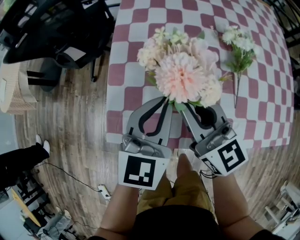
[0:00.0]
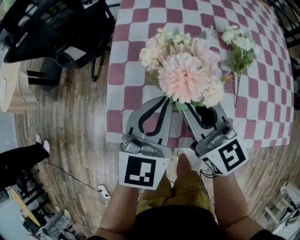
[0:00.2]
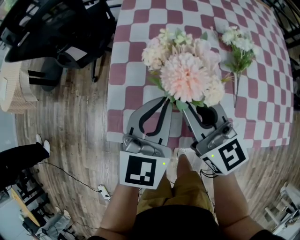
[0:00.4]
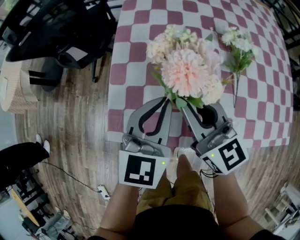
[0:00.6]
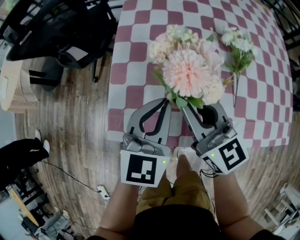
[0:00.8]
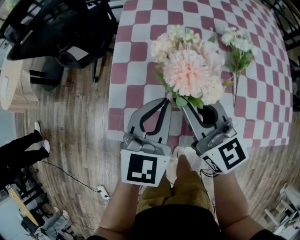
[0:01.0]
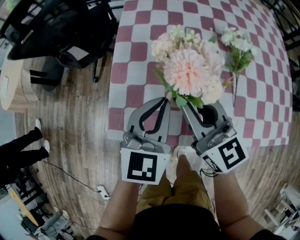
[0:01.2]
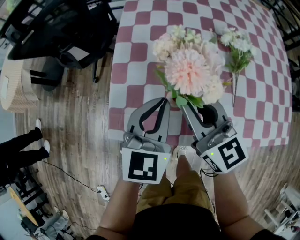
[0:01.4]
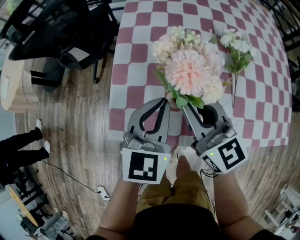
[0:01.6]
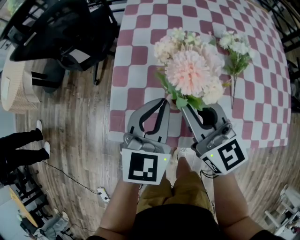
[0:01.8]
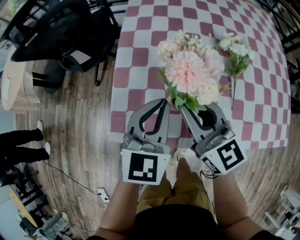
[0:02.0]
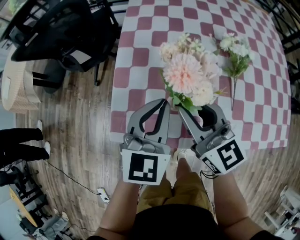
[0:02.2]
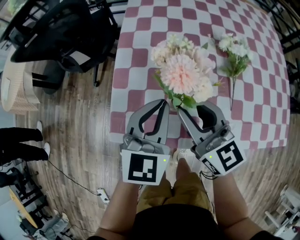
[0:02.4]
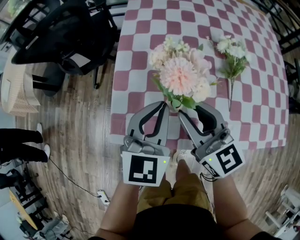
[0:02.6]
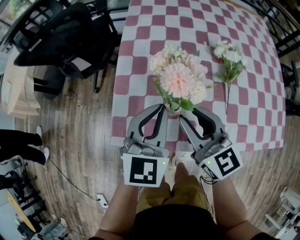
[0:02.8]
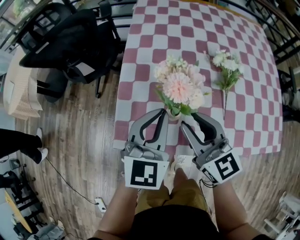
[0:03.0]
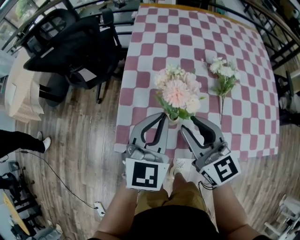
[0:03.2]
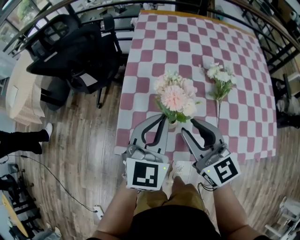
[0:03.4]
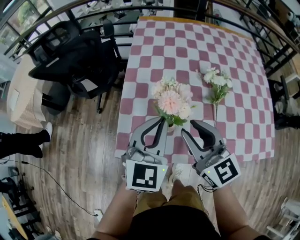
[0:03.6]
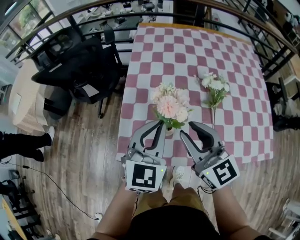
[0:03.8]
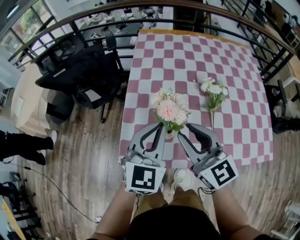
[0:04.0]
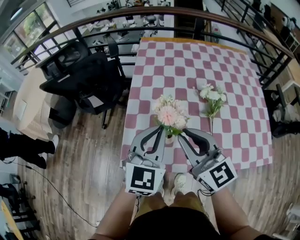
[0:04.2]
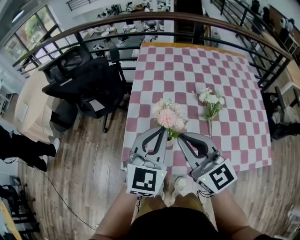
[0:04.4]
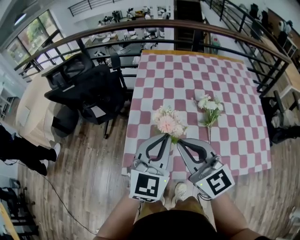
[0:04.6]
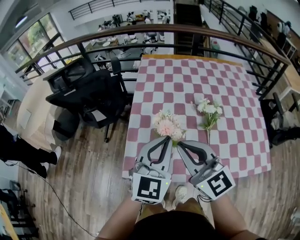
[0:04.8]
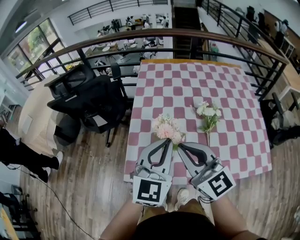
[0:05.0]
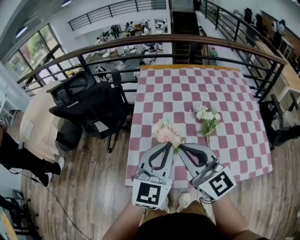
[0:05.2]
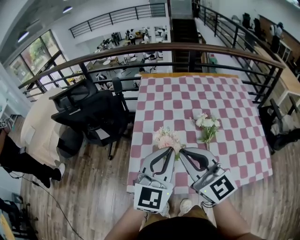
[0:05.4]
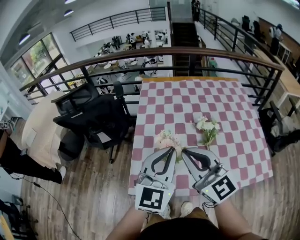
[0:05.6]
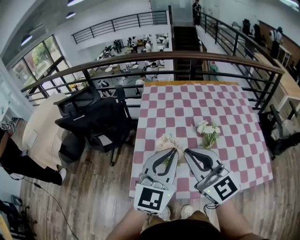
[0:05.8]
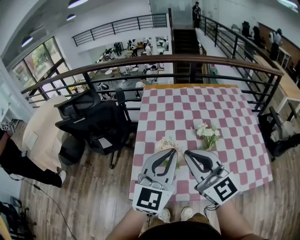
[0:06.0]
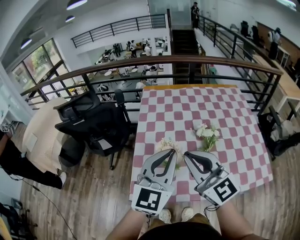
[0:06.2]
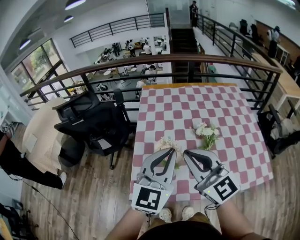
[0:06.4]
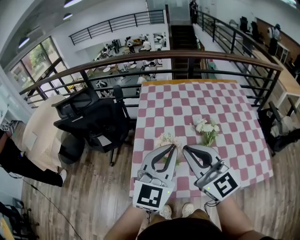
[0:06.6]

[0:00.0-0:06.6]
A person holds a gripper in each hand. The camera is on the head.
0:00.0 to 0:01.6: Both grippers stay put.
0:01.6 to 0:03.2: The left gripper goes about 5 cm upward; the right gripper changes place by about 5 cm.
0:03.2 to 0:05.0: Both grippers move upward, some 15 cm. The right gripper closes.
0:05.0 to 0:06.6: Both grippers travel together upward, roughly 5 cm.

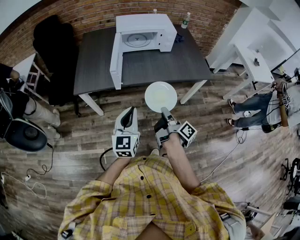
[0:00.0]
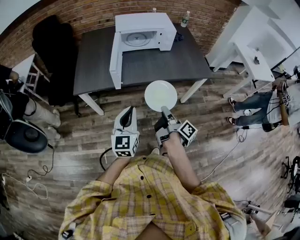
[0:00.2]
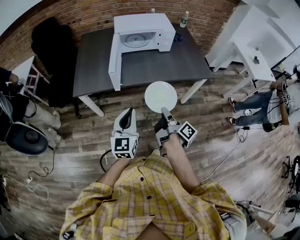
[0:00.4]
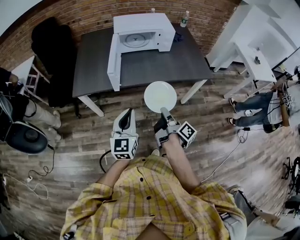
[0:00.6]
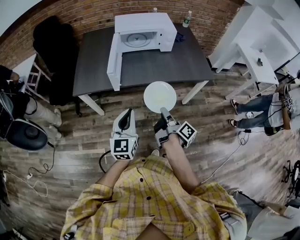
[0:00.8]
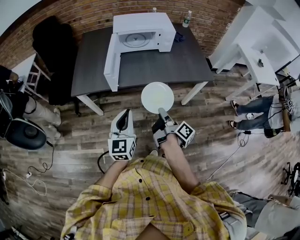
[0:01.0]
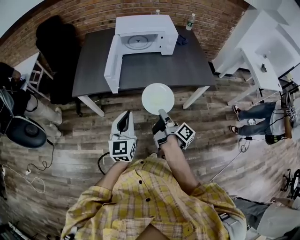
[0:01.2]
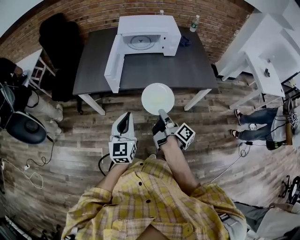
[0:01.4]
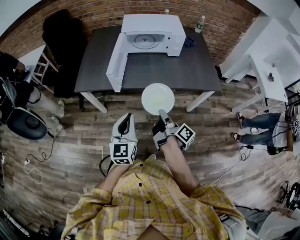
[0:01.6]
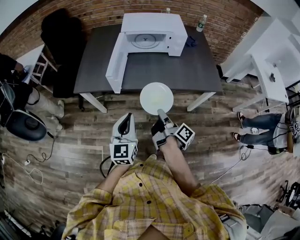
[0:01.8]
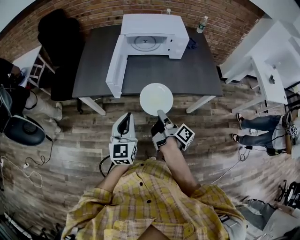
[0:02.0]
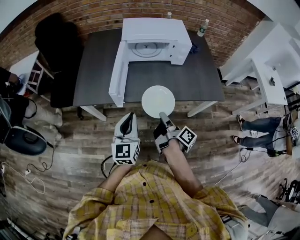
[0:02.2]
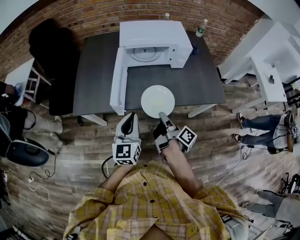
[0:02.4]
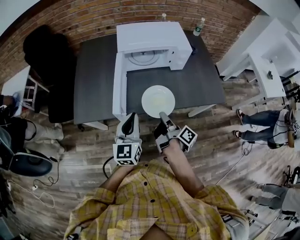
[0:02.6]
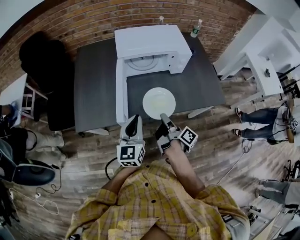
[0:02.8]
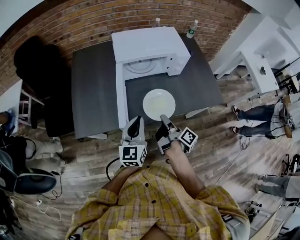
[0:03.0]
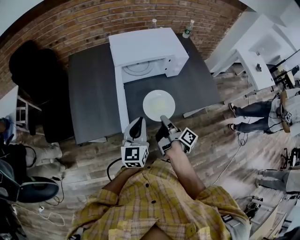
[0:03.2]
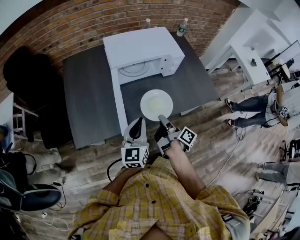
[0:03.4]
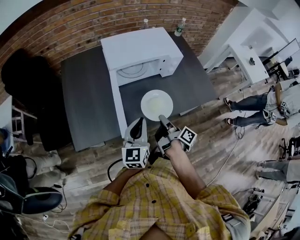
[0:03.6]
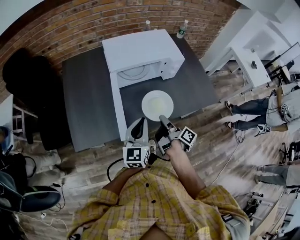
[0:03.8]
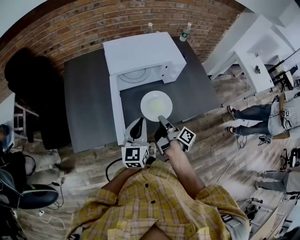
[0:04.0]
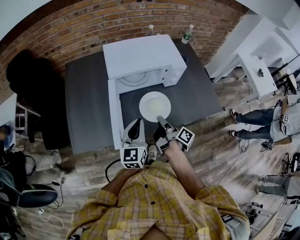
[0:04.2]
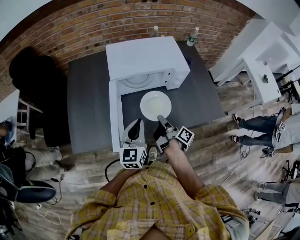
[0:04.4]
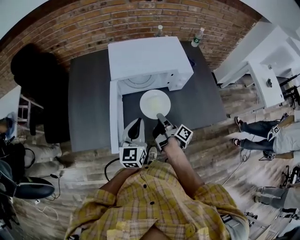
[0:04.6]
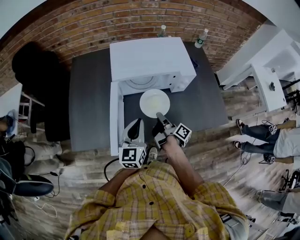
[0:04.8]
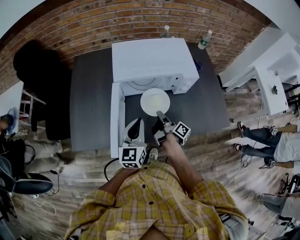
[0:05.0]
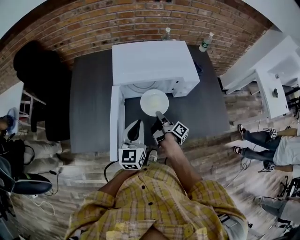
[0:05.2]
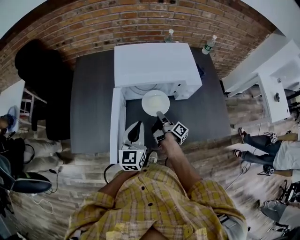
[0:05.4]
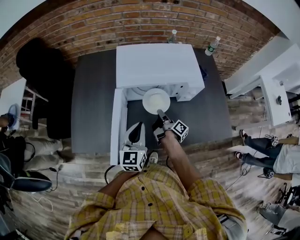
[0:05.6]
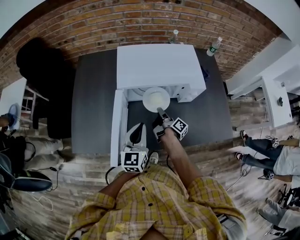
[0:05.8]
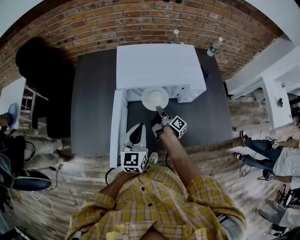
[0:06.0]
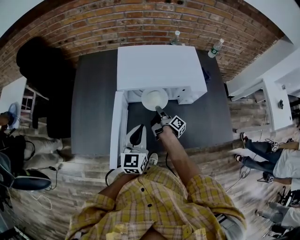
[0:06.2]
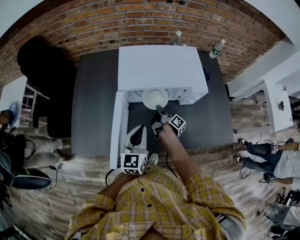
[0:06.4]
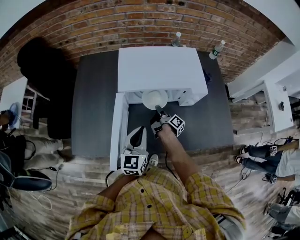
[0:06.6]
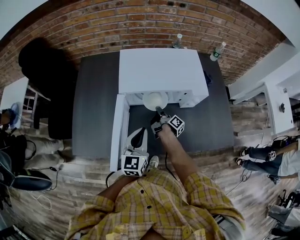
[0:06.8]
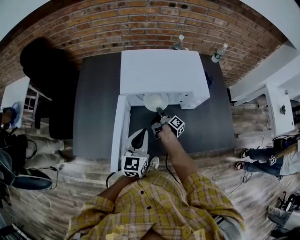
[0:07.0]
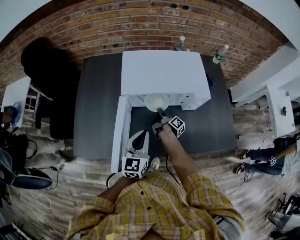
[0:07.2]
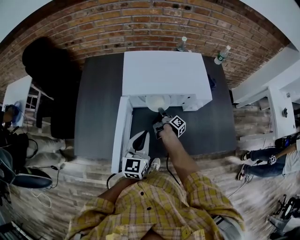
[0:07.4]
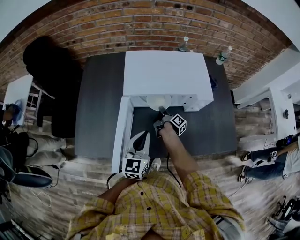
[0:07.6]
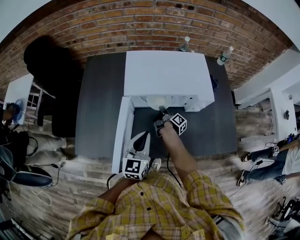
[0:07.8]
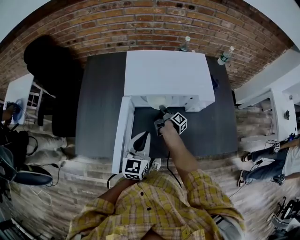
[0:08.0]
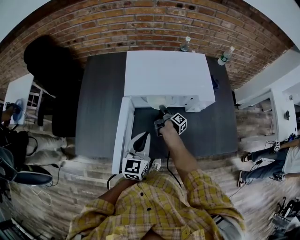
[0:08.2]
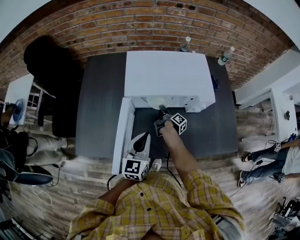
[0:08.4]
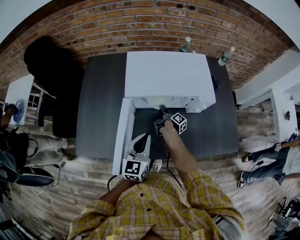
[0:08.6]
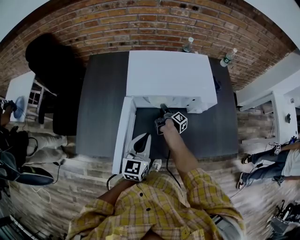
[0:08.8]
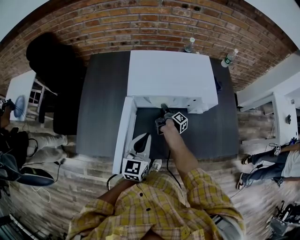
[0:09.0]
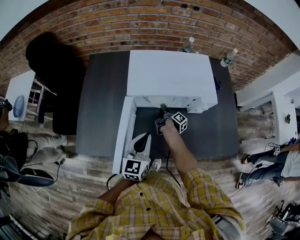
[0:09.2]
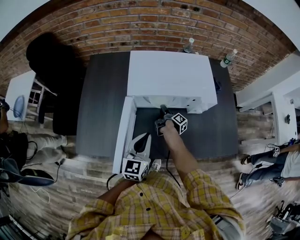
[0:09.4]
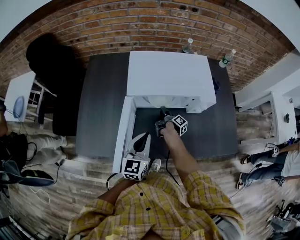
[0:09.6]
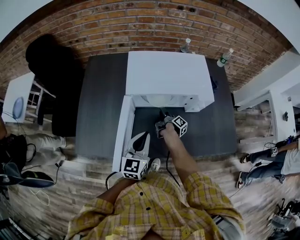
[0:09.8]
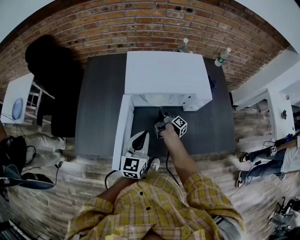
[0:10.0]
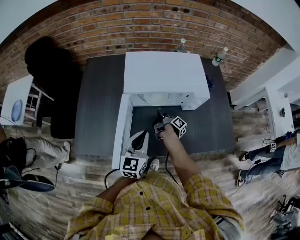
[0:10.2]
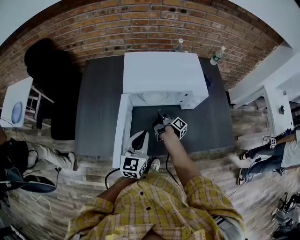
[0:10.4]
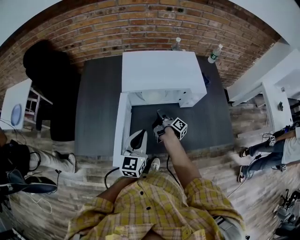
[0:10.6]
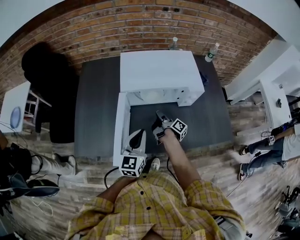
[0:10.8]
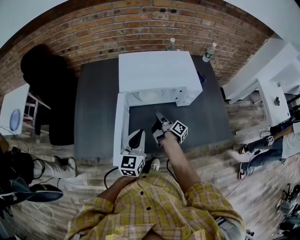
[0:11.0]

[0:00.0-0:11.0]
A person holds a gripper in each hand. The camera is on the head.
0:00.0 to 0:01.6: The left gripper changes place by some 5 cm.
0:01.6 to 0:03.2: The left gripper changes place by roughly 30 cm, and turns by some 20 degrees.
0:03.2 to 0:04.8: The left gripper moves approximately 10 cm.
0:04.8 to 0:06.2: The left gripper moves some 5 cm.

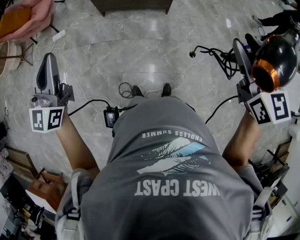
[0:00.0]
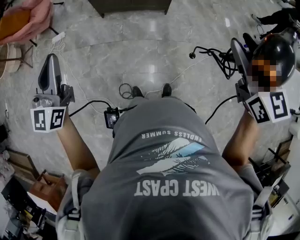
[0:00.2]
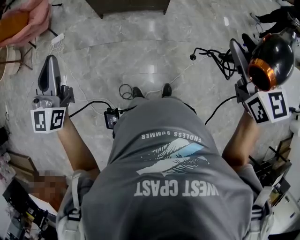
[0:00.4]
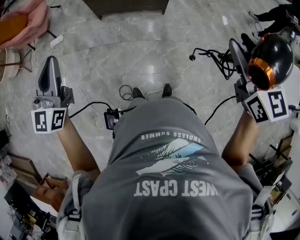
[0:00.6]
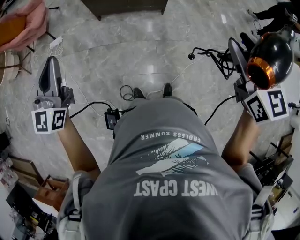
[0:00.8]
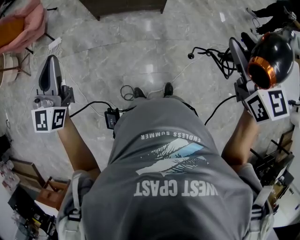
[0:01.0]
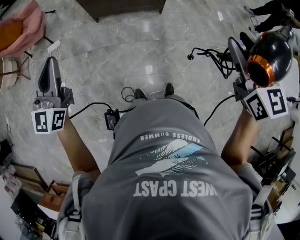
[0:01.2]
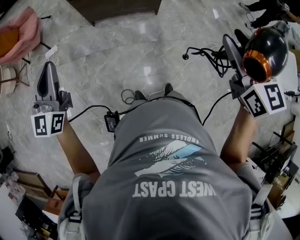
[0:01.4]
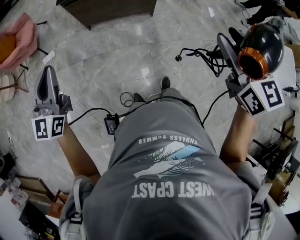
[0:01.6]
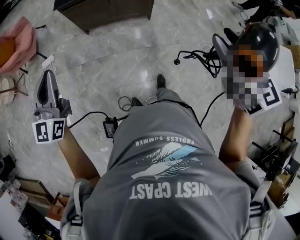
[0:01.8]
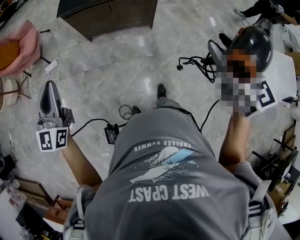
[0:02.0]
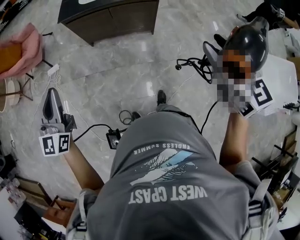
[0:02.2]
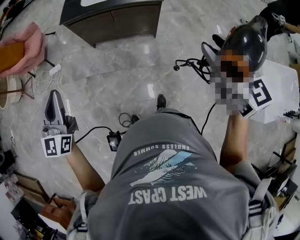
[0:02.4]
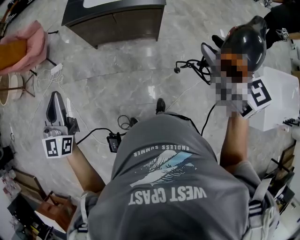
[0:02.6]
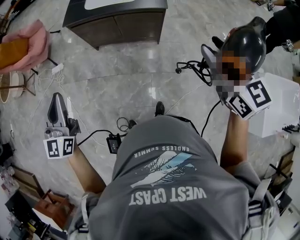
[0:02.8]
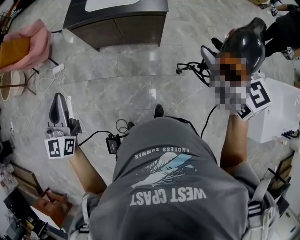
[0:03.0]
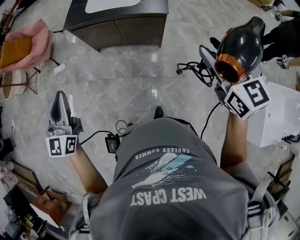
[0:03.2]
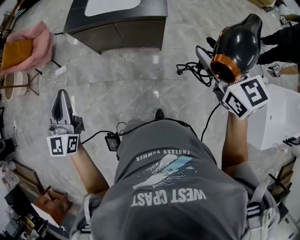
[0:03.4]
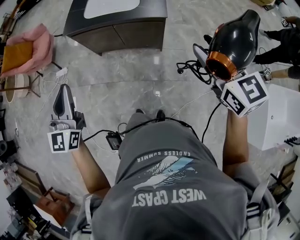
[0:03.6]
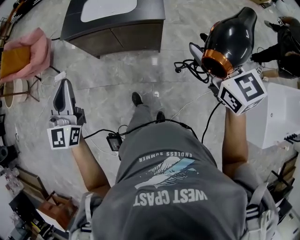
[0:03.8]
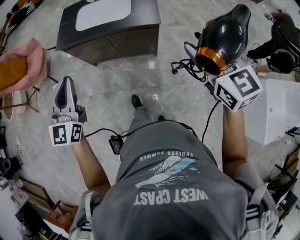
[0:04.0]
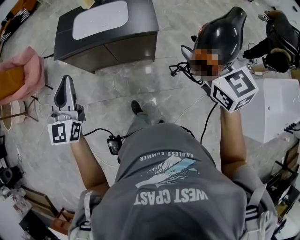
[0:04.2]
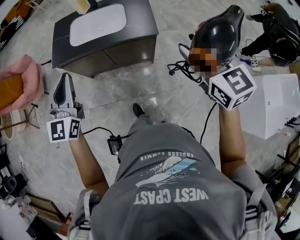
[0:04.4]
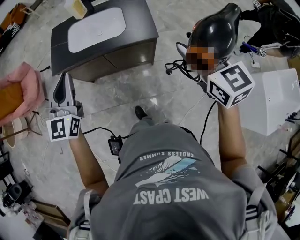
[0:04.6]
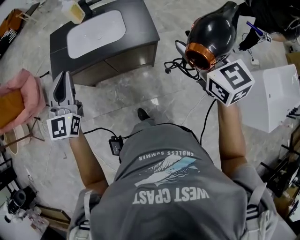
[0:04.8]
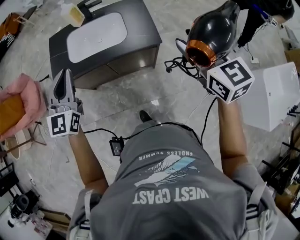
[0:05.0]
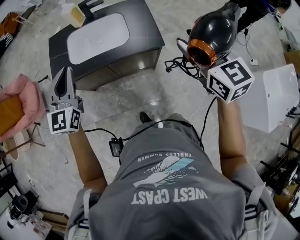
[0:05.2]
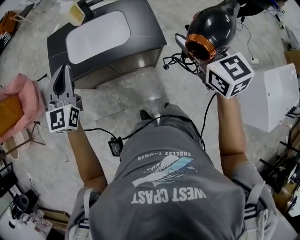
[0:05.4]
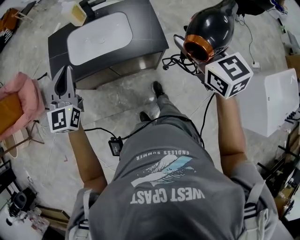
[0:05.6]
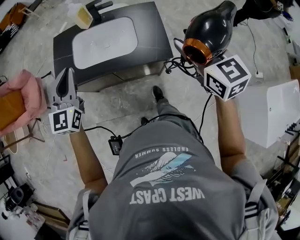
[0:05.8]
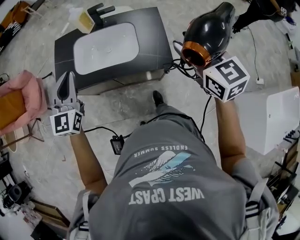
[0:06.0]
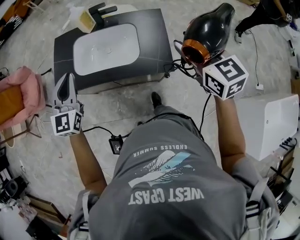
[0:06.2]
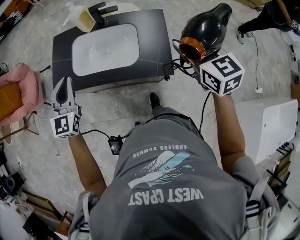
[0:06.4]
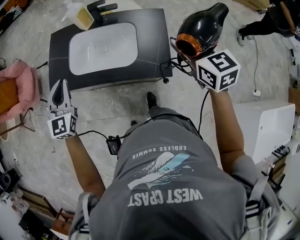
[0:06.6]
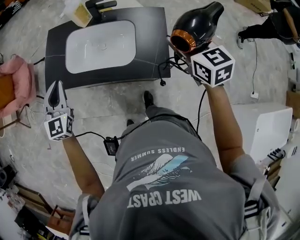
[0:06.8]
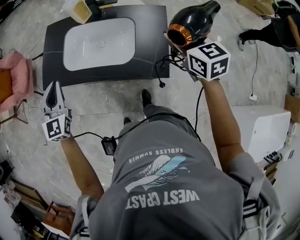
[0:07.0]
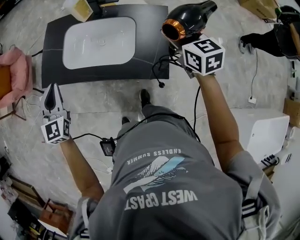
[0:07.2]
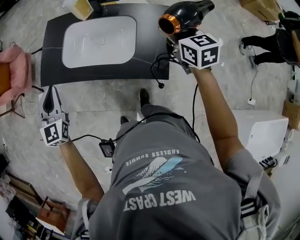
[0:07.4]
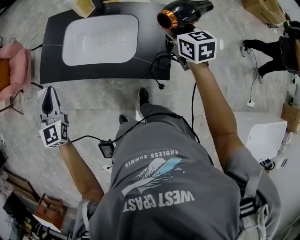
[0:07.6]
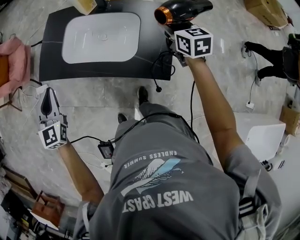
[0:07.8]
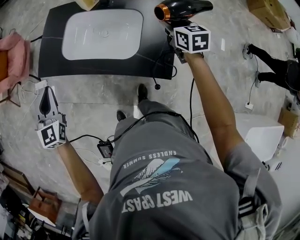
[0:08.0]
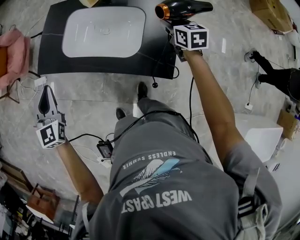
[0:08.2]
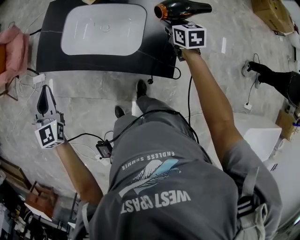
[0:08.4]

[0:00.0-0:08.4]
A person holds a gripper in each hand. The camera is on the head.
0:00.0 to 0:01.4: The left gripper shifts some 5 cm forward.
0:01.4 to 0:02.8: The left gripper goes roughly 15 cm to the right and forward; the right gripper goes some 20 cm forward and to the right.
0:02.8 to 0:04.2: The left gripper travels forward and to the right by some 25 cm. The right gripper travels forward by about 15 cm.
0:04.2 to 0:05.6: The two grippers go roughly 25 cm forward.
0:05.6 to 0:07.0: The left gripper heads downward and forward, covering roughly 10 cm, and turns by some 20 degrees. The right gripper goes approximately 25 cm forward and downward.
0:07.0 to 0:08.4: The right gripper shifts about 20 cm downward and forward, while the left gripper travels to the left by approximately 5 cm.
